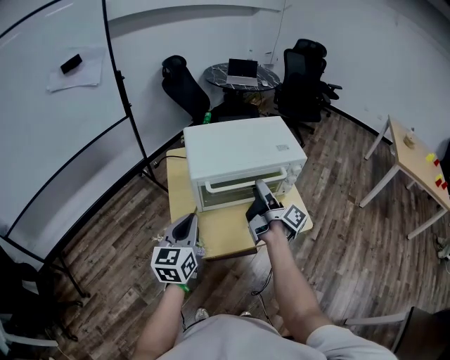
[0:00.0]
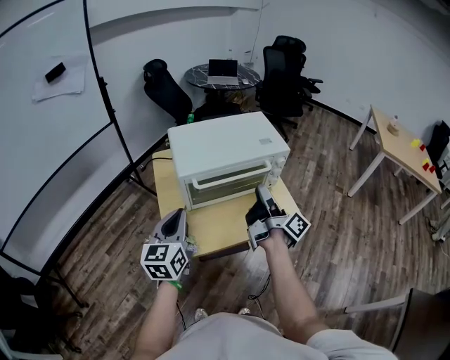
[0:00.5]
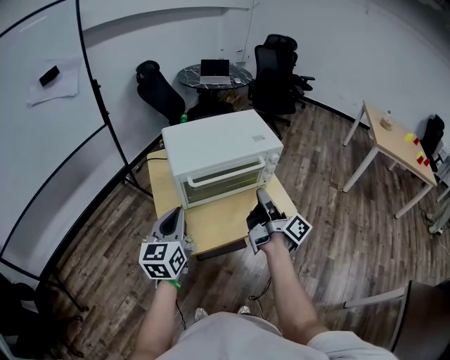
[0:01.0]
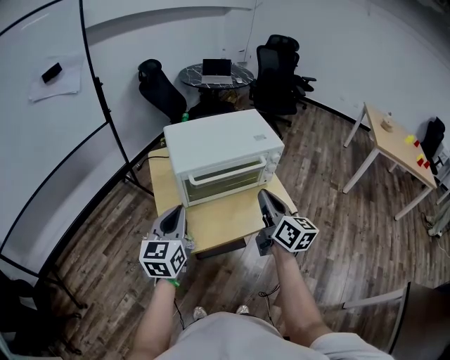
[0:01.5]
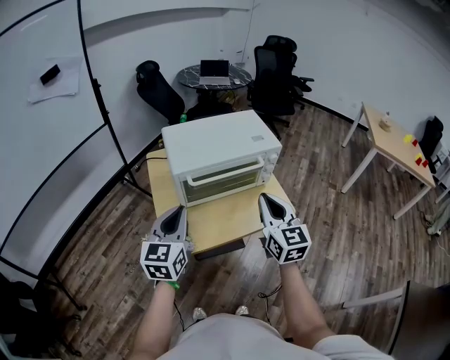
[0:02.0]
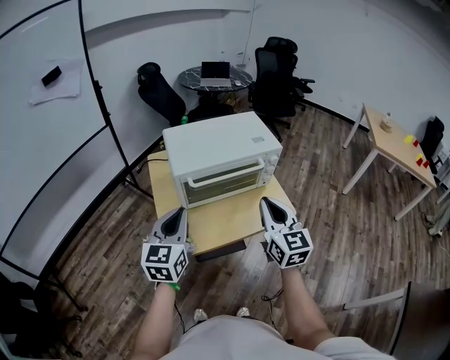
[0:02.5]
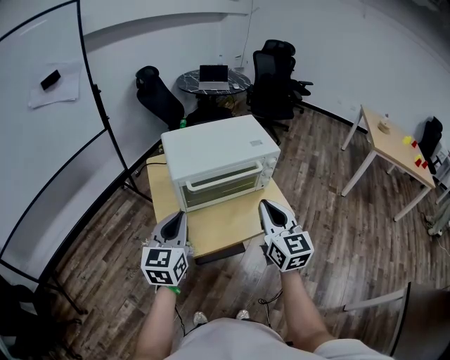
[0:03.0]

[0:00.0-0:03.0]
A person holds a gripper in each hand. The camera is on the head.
0:00.0 to 0:01.5: The right gripper heads backward, covering about 10 cm, twists some 50 degrees counterclockwise, seen from behind, and closes up.
0:01.5 to 0:03.0: The right gripper changes its angle by about 30 degrees.

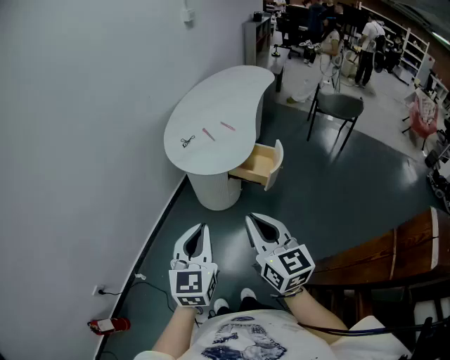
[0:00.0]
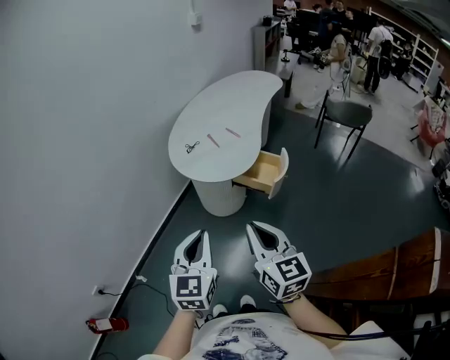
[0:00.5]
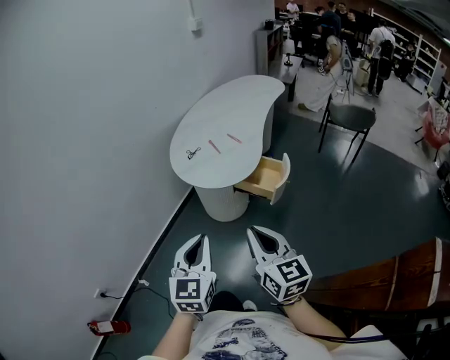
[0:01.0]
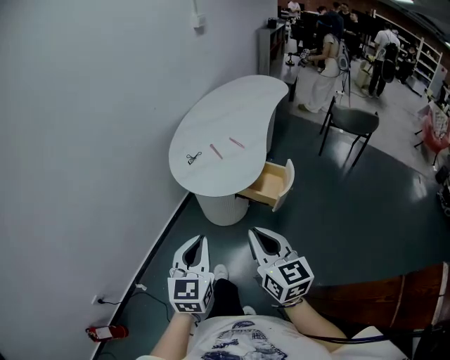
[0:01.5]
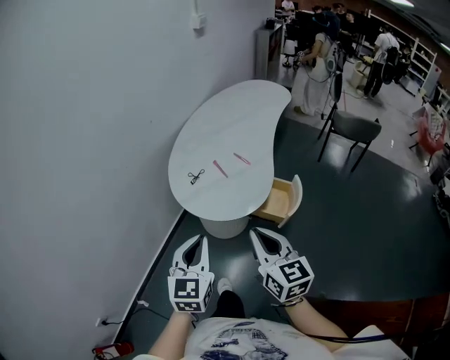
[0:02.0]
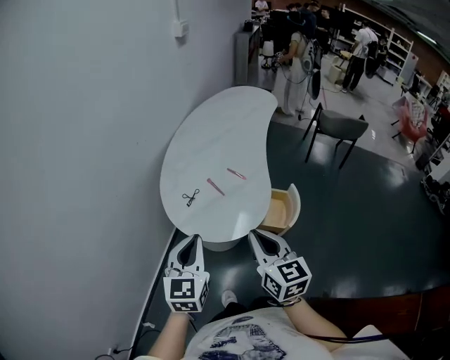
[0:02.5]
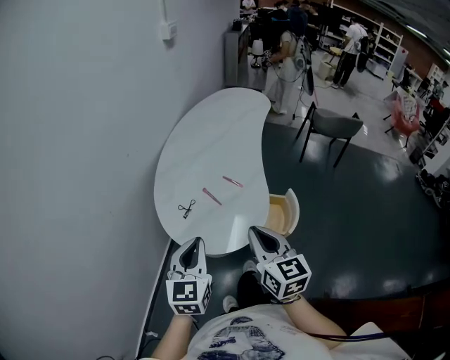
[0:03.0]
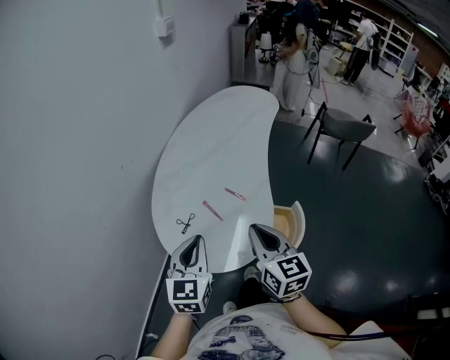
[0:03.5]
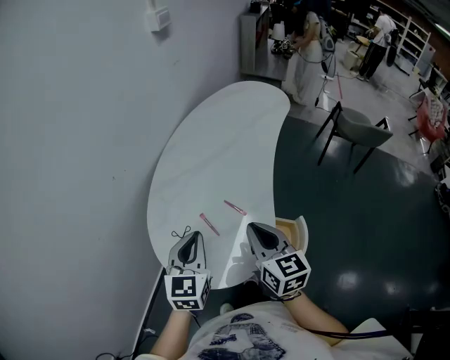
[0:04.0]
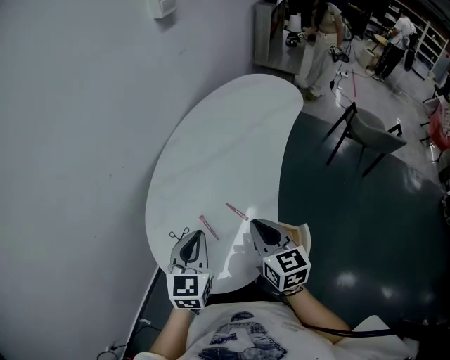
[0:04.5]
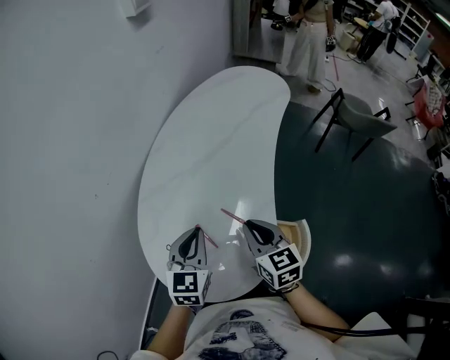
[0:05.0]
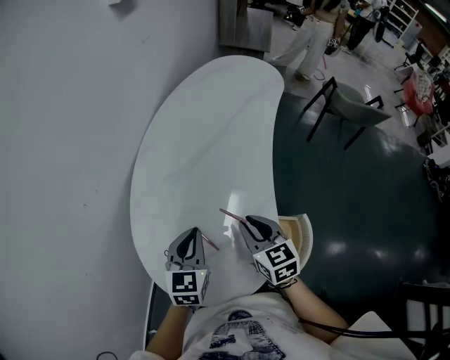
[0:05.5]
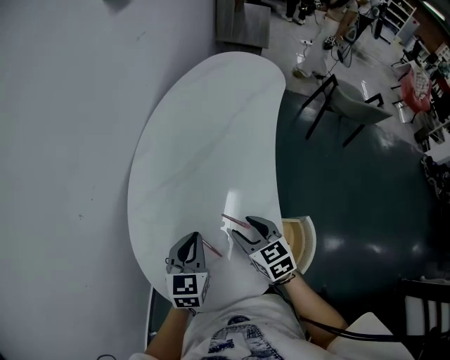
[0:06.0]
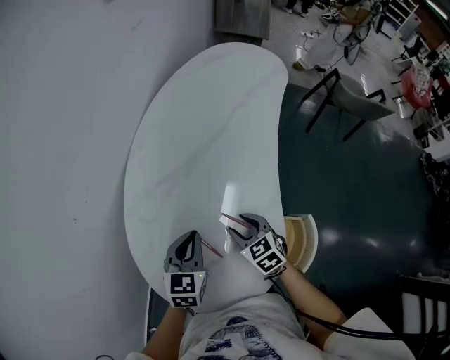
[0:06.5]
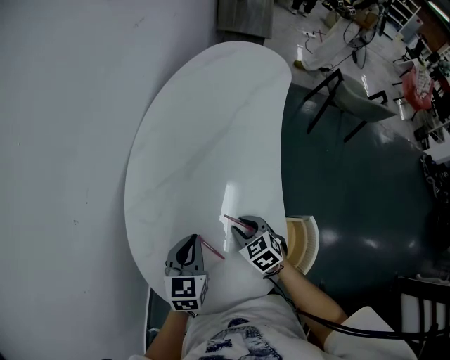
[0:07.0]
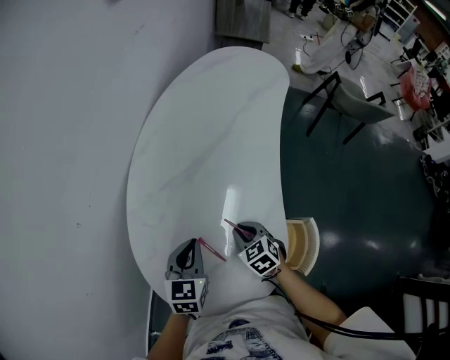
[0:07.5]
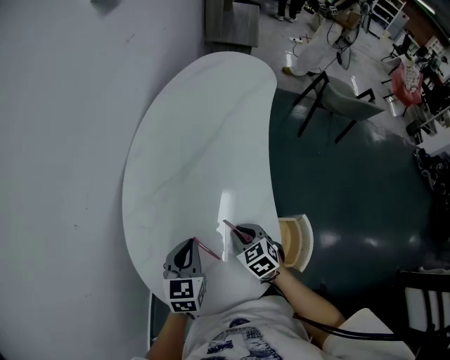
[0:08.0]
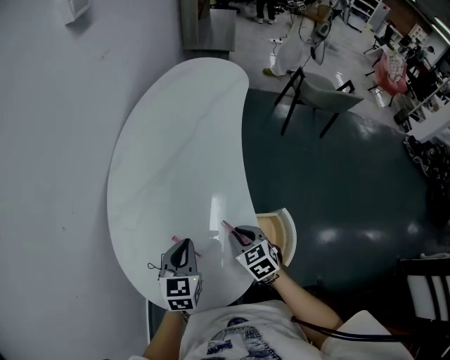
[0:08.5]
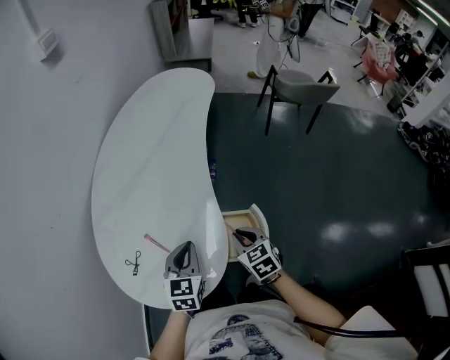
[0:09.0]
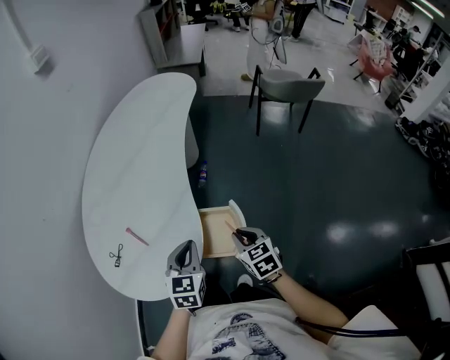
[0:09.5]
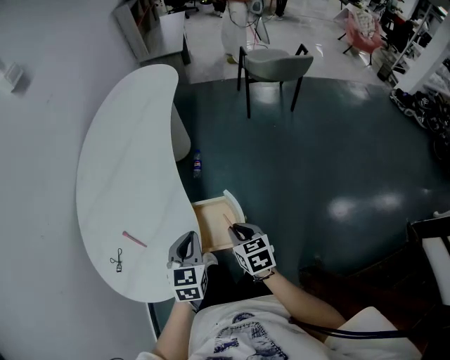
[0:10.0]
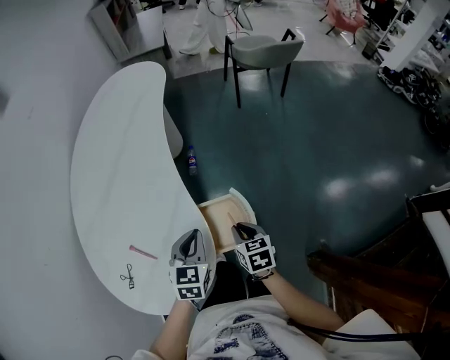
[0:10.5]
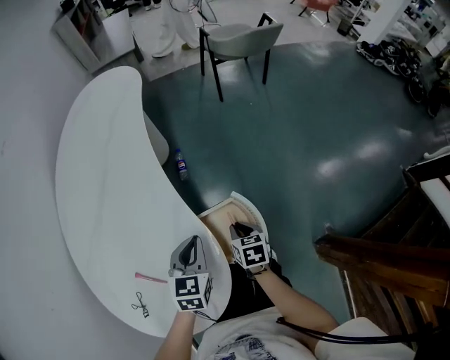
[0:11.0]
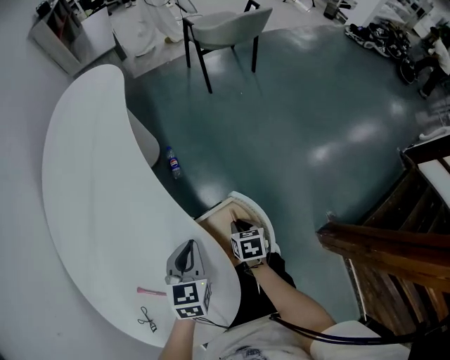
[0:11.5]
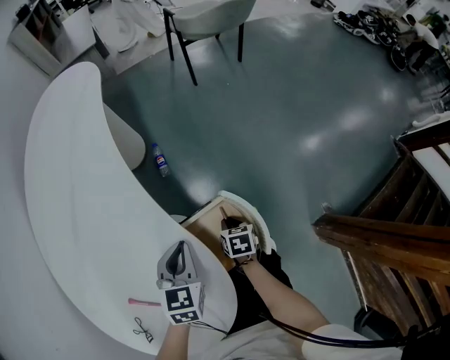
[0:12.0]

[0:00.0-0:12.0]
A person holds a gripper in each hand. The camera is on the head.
0:00.0 to 0:02.0: Both grippers travel together forward, roughly 20 cm.
0:02.0 to 0:04.0: Both grippers travel together forward, about 35 cm.
0:04.0 to 0:06.0: The right gripper is displaced downward and forward by roughly 20 cm, changes its angle by approximately 20 degrees, and opens, while the left gripper travels forward and downward by some 20 cm.
0:06.0 to 0:08.0: The right gripper travels downward by approximately 5 cm, and closes.
0:08.0 to 0:10.0: The two grippers go some 35 cm to the right and backward. The right gripper swivels about 40 degrees.
0:10.0 to 0:12.0: The right gripper goes roughly 25 cm downward, and changes its angle by approximately 40 degrees; the left gripper travels downward, forward and to the left by approximately 15 cm, and rotates approximately 20 degrees.

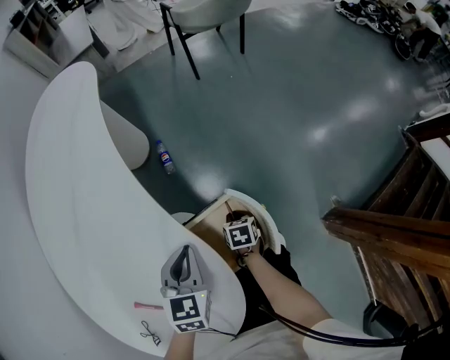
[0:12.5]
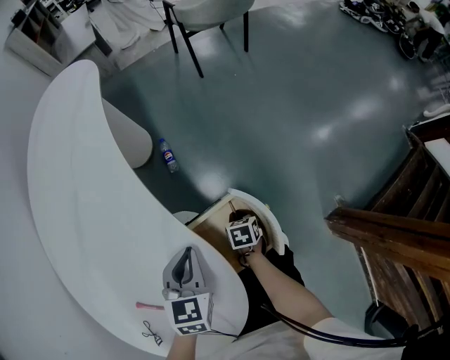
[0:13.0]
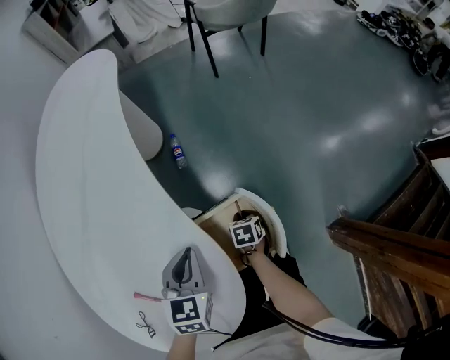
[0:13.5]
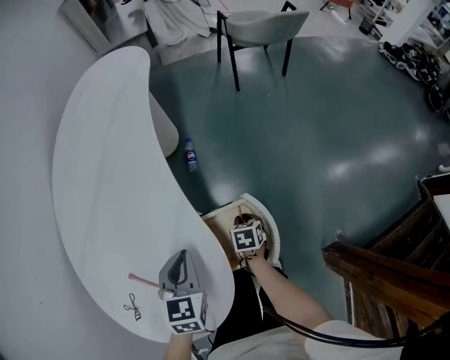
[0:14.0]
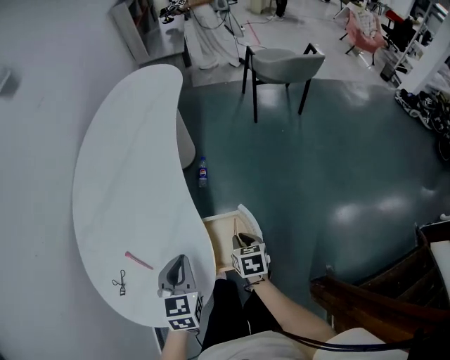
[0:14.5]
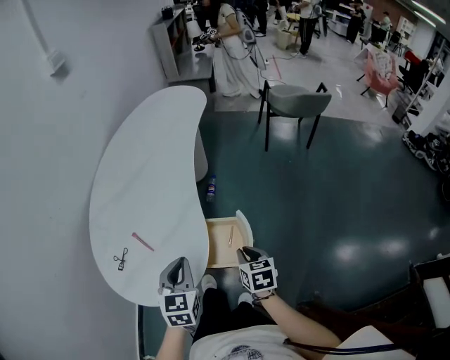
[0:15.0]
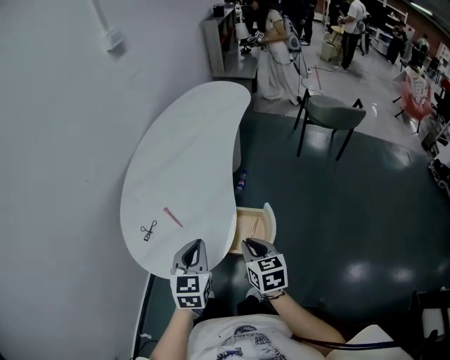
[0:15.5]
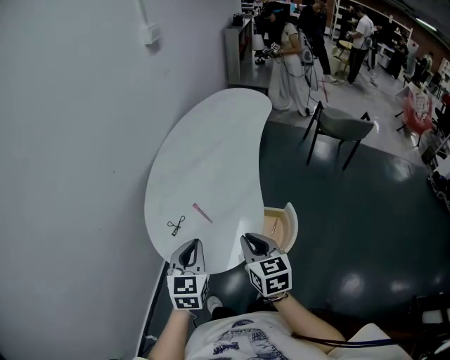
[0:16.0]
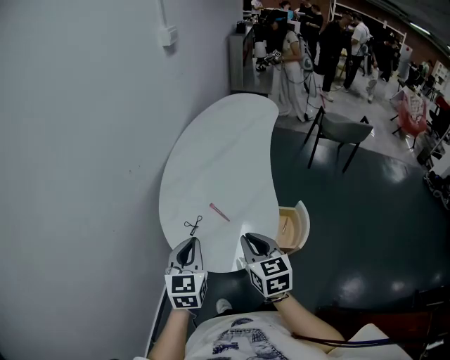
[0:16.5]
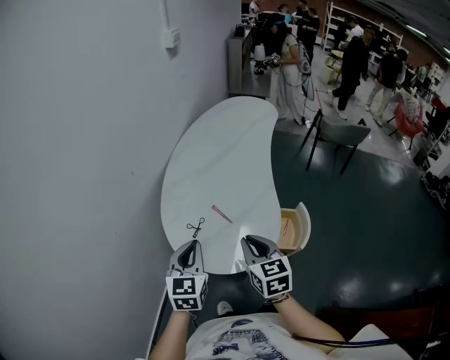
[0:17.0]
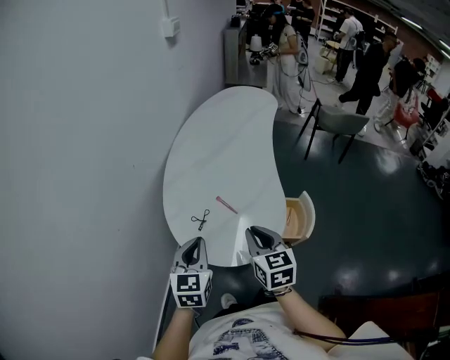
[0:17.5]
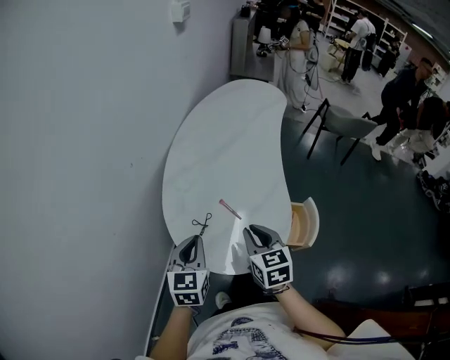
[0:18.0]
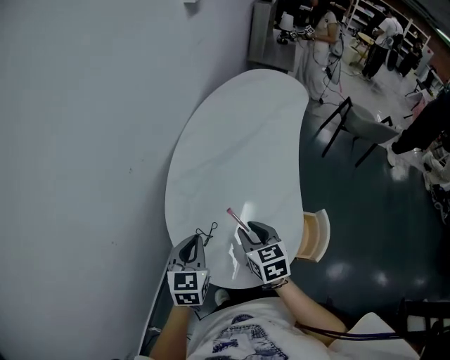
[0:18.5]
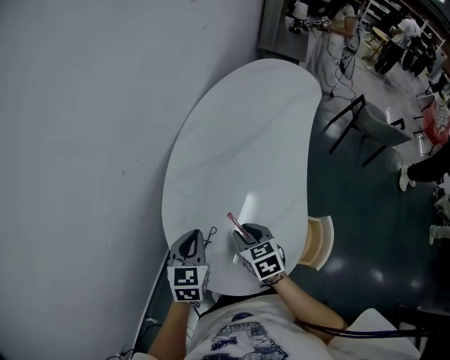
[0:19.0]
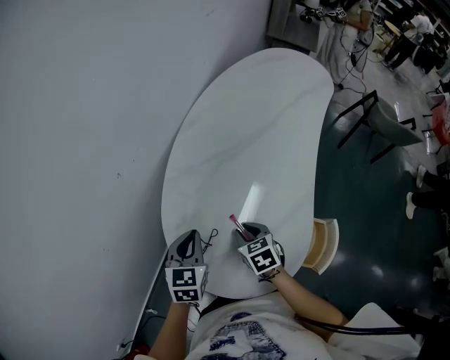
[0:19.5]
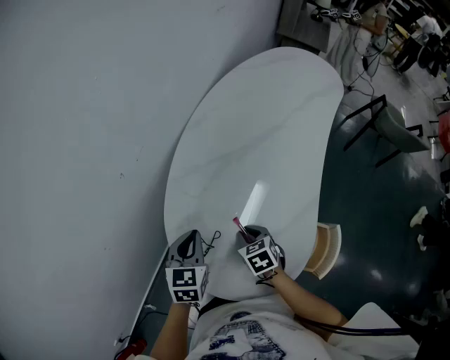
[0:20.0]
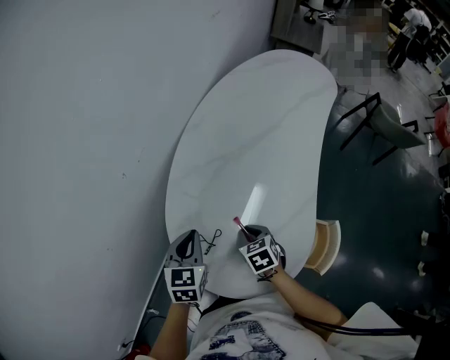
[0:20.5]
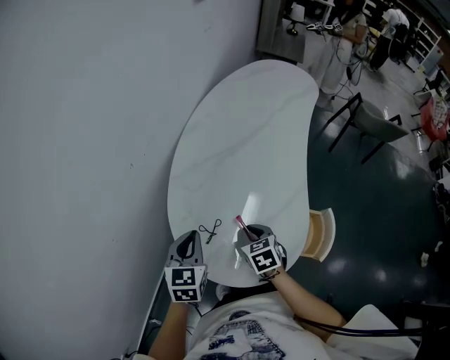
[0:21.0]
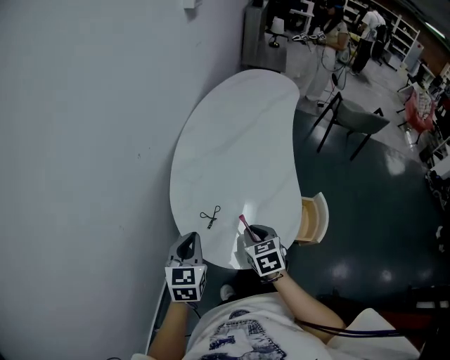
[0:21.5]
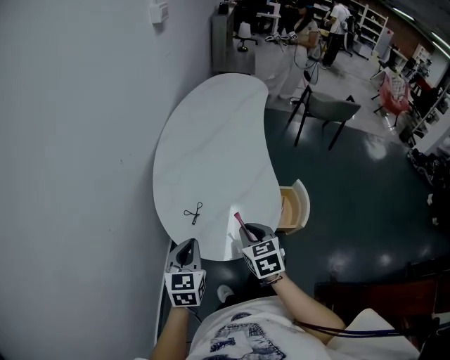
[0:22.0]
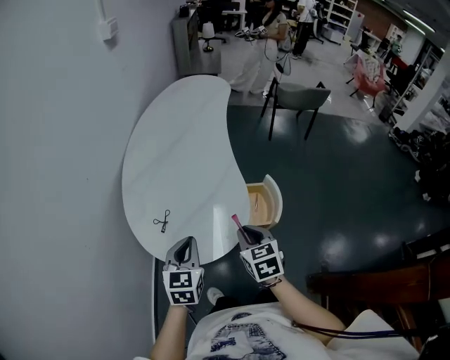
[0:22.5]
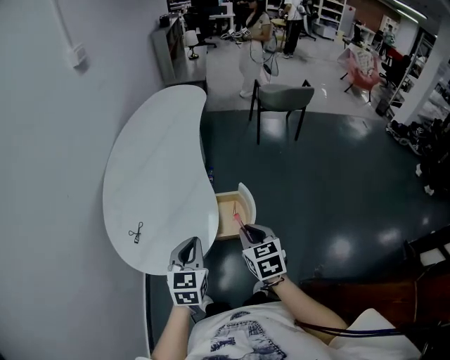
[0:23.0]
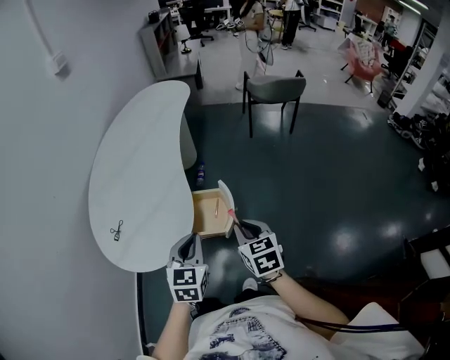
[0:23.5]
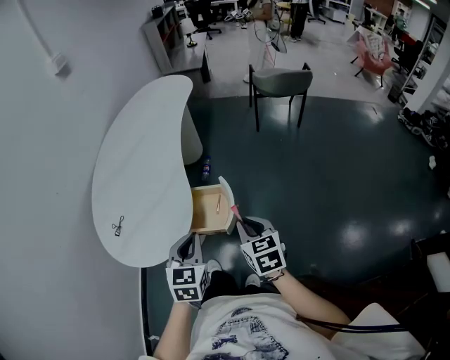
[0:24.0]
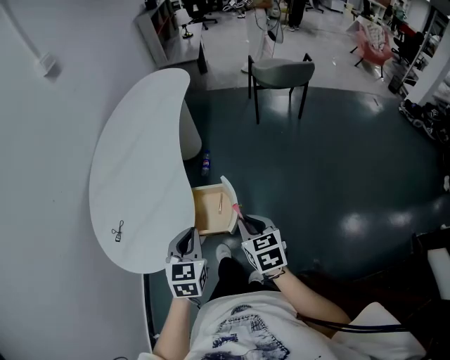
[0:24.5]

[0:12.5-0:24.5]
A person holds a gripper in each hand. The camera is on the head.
0:12.5 to 0:14.5: The right gripper is displaced upward by some 15 cm, and turns by roughly 30 degrees. Meanwhile the left gripper moves backward and upward, roughly 15 cm, and changes its angle by approximately 30 degrees.
0:14.5 to 0:16.5: The right gripper moves upward and to the left, about 40 cm, and swivels about 40 degrees. Meanwhile the left gripper shifts roughly 35 cm to the left, upward and backward, and changes its angle by roughly 20 degrees.
0:16.5 to 0:18.5: The two grippers go some 20 cm forward, downward and to the left.
0:18.5 to 0:20.5: The left gripper travels forward by roughly 5 cm, while the right gripper shifts approximately 15 cm downward, and turns by some 20 degrees.
0:20.5 to 0:22.5: The right gripper ends up about 35 cm from where it was, and swivels approximately 40 degrees; the left gripper ends up approximately 25 cm from where it was, and changes its angle by some 30 degrees.
0:22.5 to 0:24.5: Both grippers travel together to the right, roughly 30 cm.
